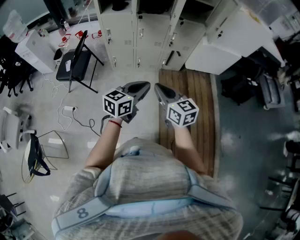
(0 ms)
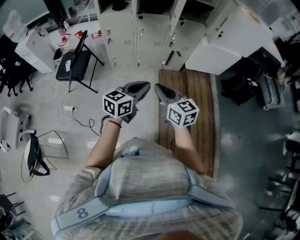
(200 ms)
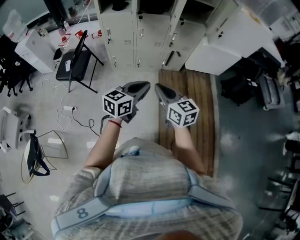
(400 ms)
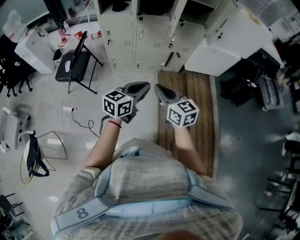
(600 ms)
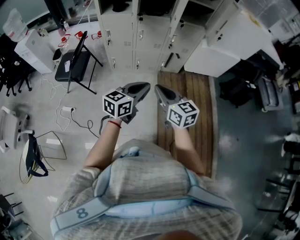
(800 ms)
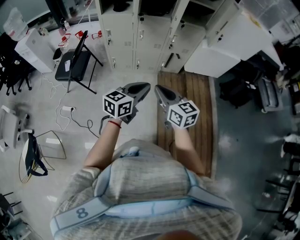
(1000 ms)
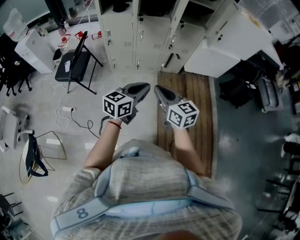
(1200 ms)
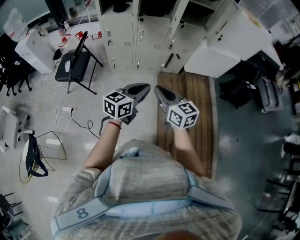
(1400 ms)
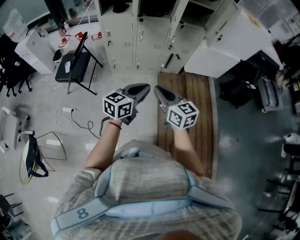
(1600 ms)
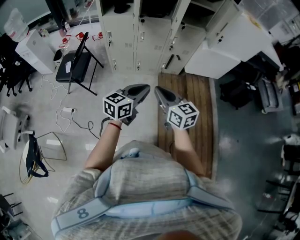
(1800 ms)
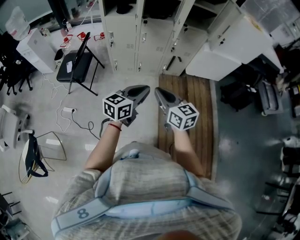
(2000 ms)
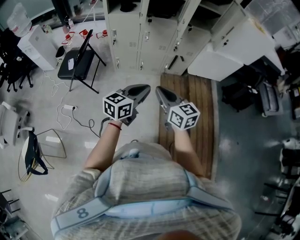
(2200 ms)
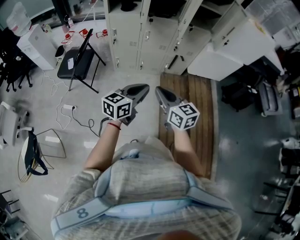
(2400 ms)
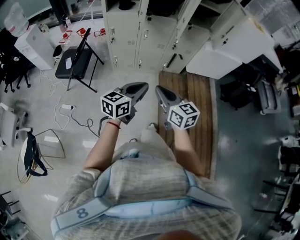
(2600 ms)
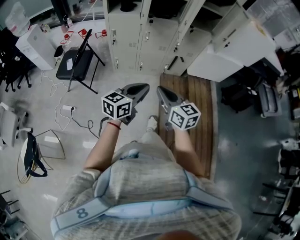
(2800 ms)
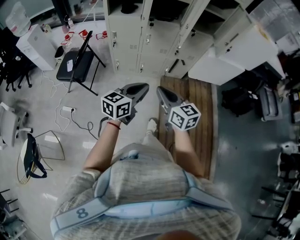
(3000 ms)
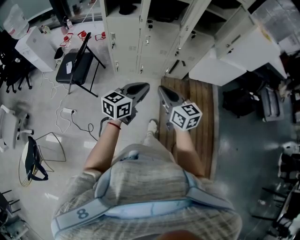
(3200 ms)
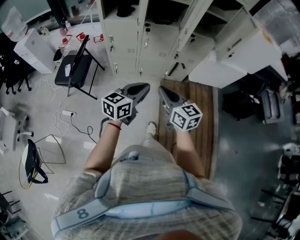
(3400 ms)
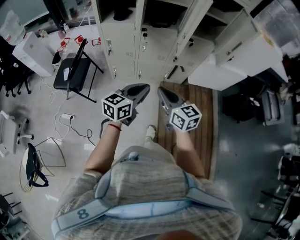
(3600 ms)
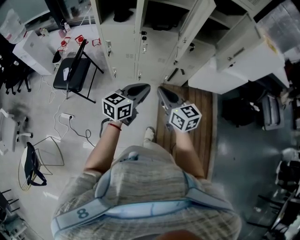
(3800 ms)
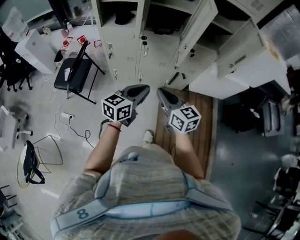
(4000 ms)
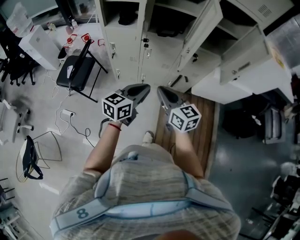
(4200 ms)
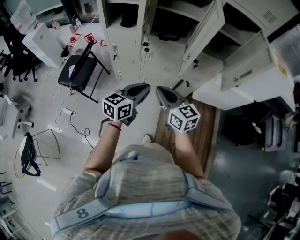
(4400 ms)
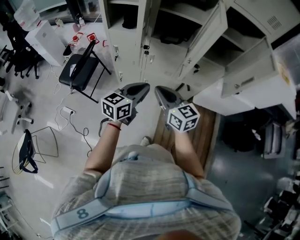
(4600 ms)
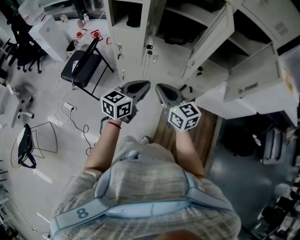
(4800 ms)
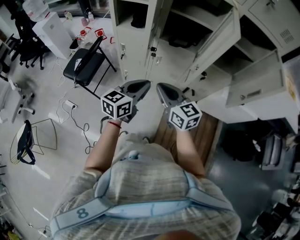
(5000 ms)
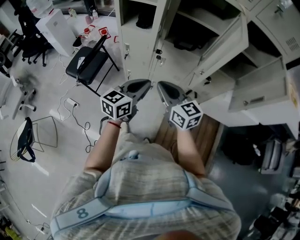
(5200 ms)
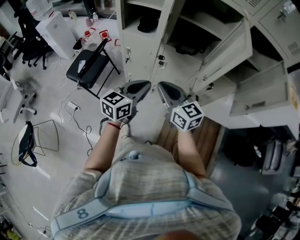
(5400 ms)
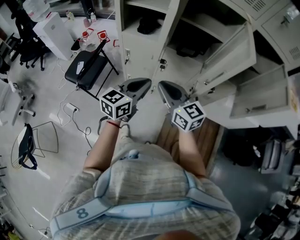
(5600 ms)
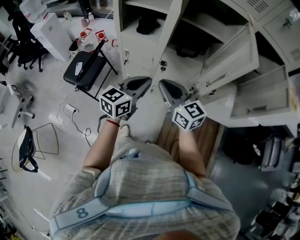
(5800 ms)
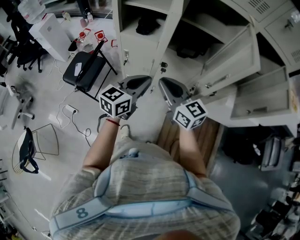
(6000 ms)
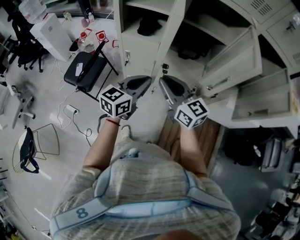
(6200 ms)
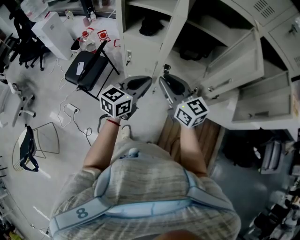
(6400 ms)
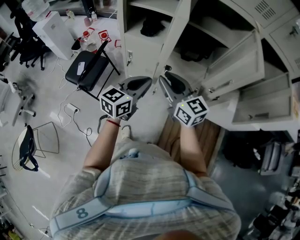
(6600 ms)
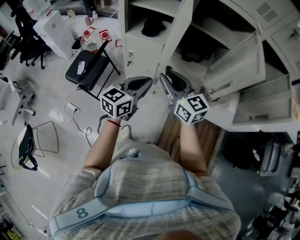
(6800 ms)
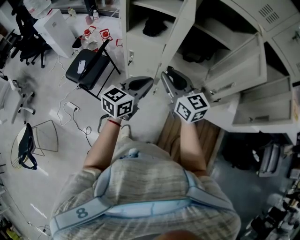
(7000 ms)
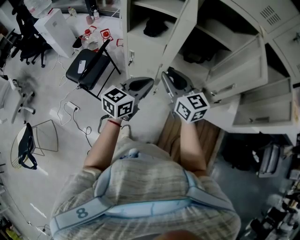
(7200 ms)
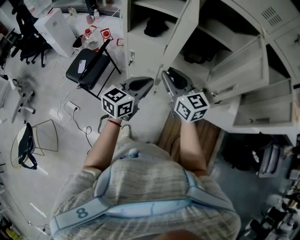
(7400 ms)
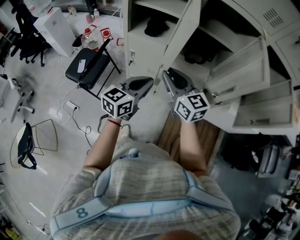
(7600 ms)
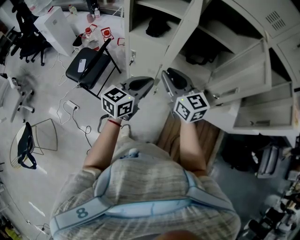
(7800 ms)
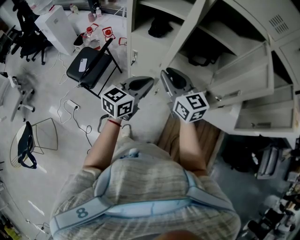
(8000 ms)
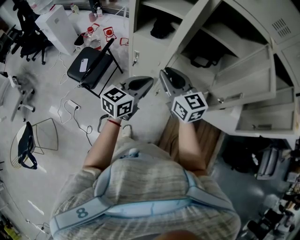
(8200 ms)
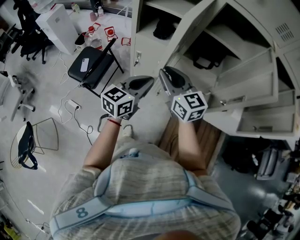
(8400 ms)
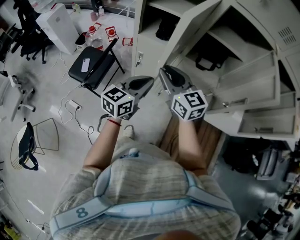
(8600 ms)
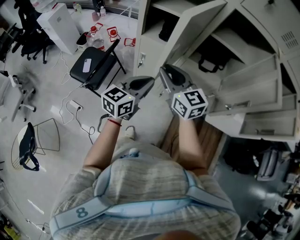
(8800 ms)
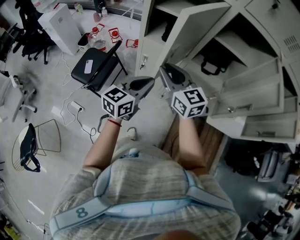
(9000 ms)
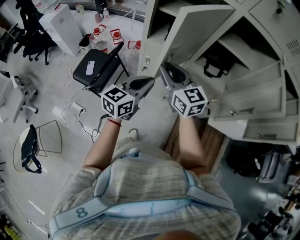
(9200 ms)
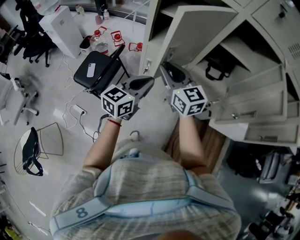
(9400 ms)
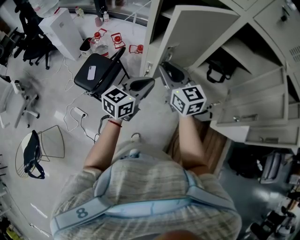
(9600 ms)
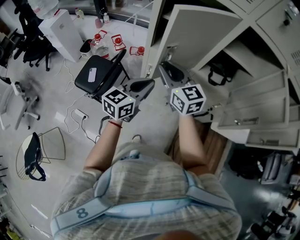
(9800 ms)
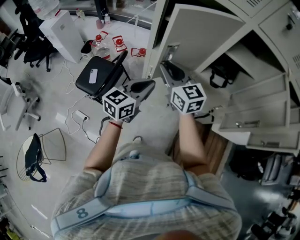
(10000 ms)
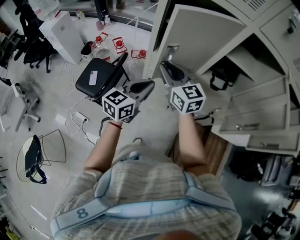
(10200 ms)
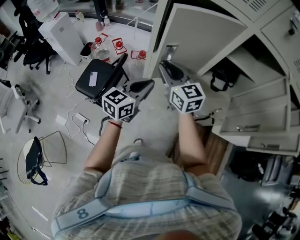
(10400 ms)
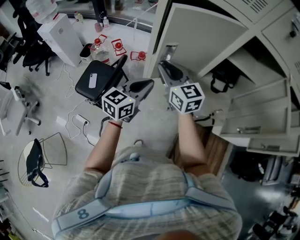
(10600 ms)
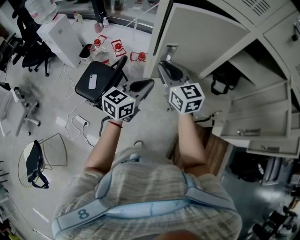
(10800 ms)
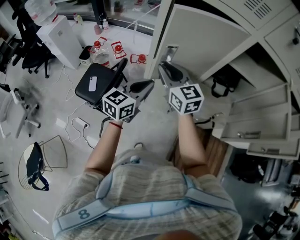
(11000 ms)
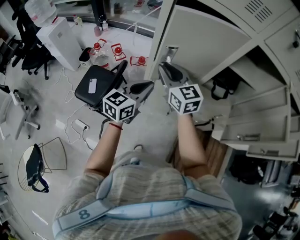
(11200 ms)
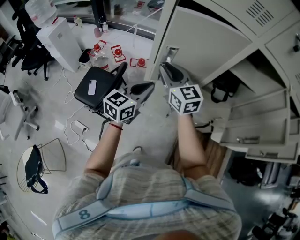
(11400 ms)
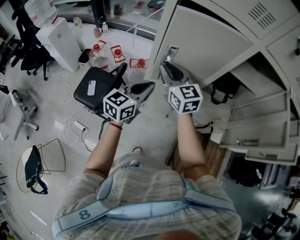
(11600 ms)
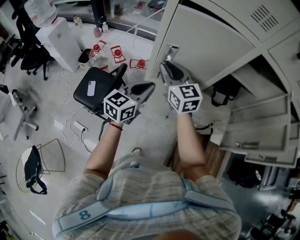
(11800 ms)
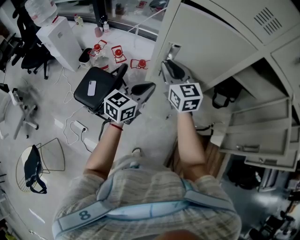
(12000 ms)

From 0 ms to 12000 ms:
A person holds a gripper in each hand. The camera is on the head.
From 0 ms to 1600 ms: Both grippers stay put.
From 1600 ms to 3000 ms: The right gripper moves some 5 cm; the left gripper heads to the left, covering approximately 5 cm.
From 3000 ms to 4400 ms: Both grippers travel together forward, about 20 cm.
From 4400 ms to 6000 ms: Both grippers travel together forward and to the left, roughly 15 cm.
From 6000 ms to 7600 ms: The right gripper heads forward, covering some 5 cm.
From 7600 ms to 9000 ms: The grippers both shift to the left by roughly 10 cm.
From 9000 ms to 10400 ms: The right gripper shifts about 10 cm forward and to the left. Meanwhile the left gripper moves to the left and forward, approximately 10 cm.
From 10400 ms to 12000 ms: The grippers both shift forward by about 10 cm.

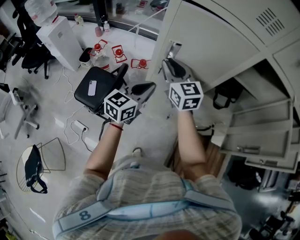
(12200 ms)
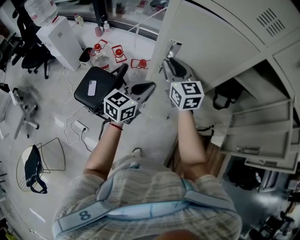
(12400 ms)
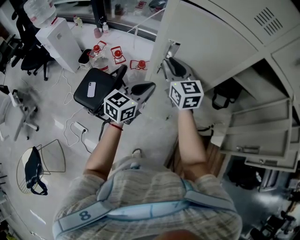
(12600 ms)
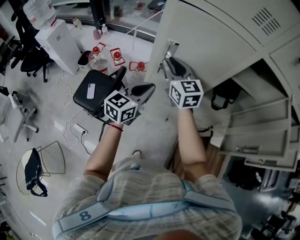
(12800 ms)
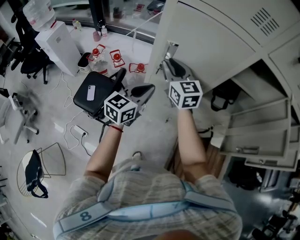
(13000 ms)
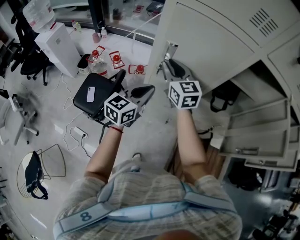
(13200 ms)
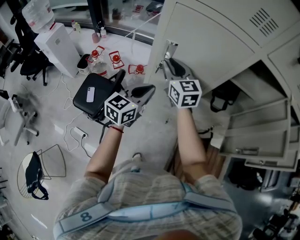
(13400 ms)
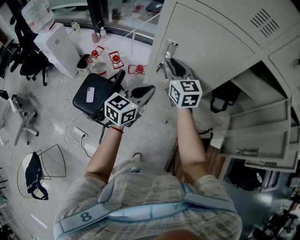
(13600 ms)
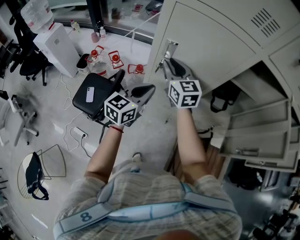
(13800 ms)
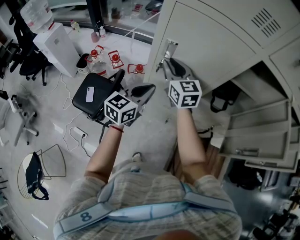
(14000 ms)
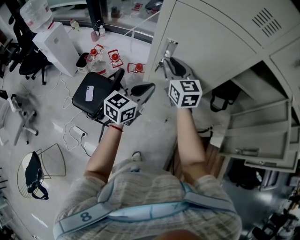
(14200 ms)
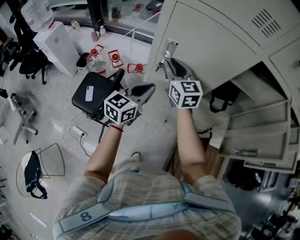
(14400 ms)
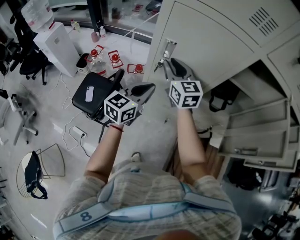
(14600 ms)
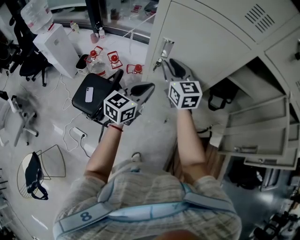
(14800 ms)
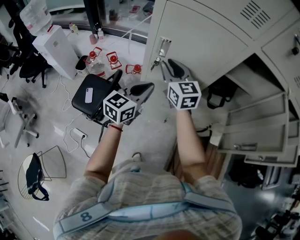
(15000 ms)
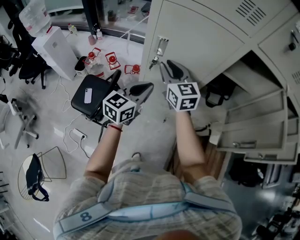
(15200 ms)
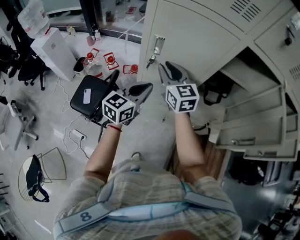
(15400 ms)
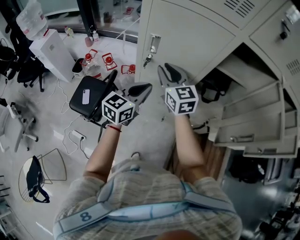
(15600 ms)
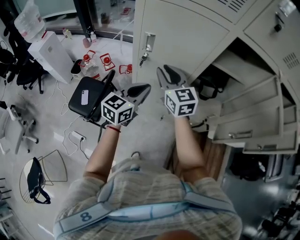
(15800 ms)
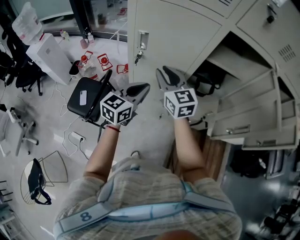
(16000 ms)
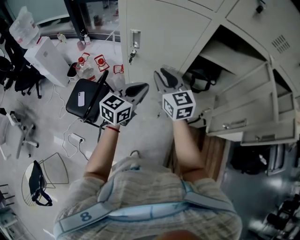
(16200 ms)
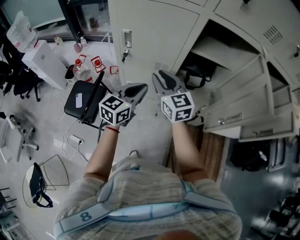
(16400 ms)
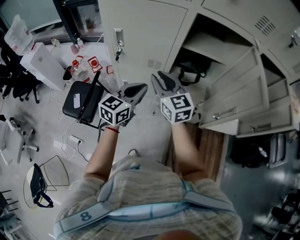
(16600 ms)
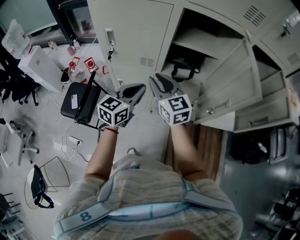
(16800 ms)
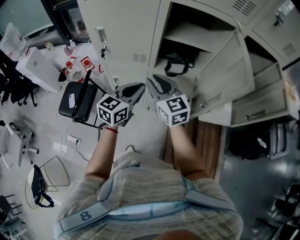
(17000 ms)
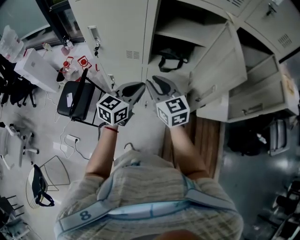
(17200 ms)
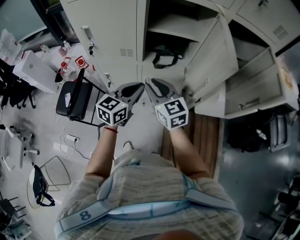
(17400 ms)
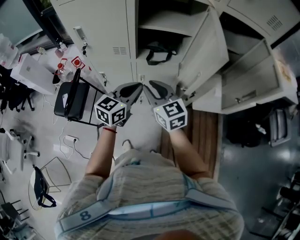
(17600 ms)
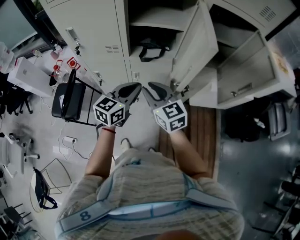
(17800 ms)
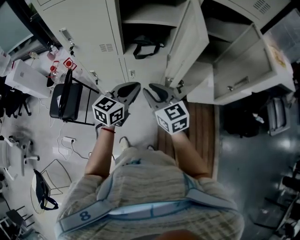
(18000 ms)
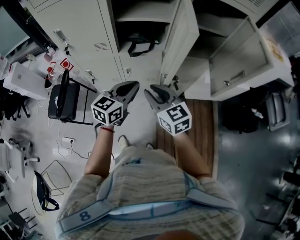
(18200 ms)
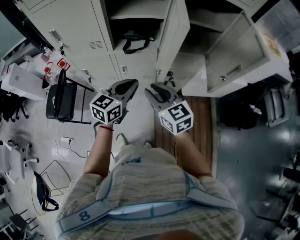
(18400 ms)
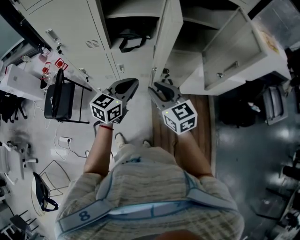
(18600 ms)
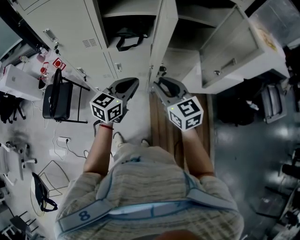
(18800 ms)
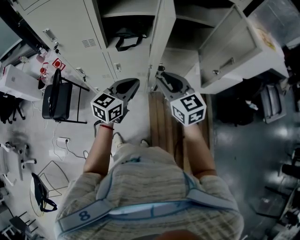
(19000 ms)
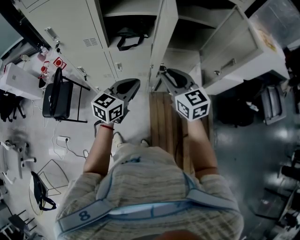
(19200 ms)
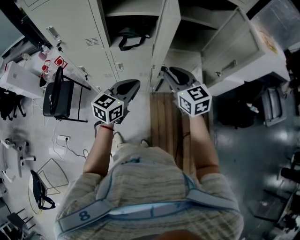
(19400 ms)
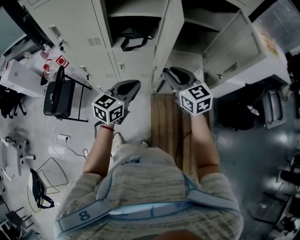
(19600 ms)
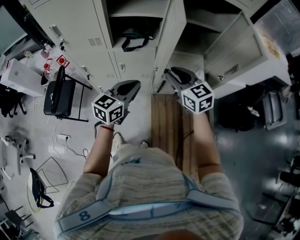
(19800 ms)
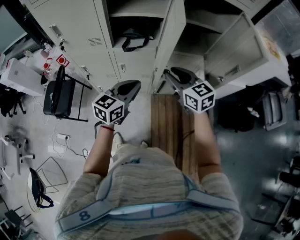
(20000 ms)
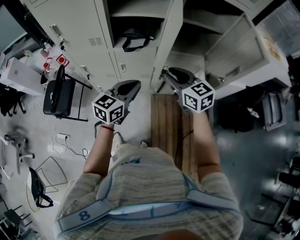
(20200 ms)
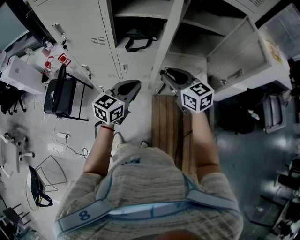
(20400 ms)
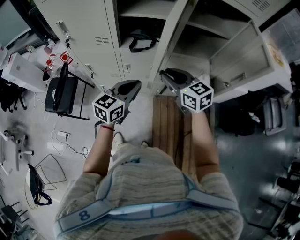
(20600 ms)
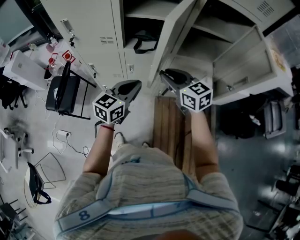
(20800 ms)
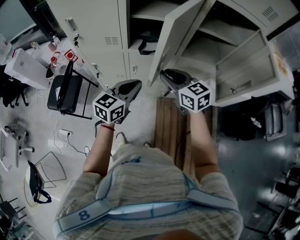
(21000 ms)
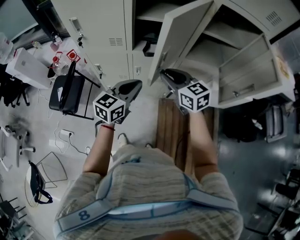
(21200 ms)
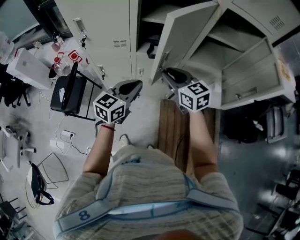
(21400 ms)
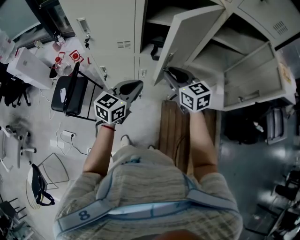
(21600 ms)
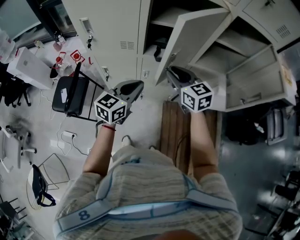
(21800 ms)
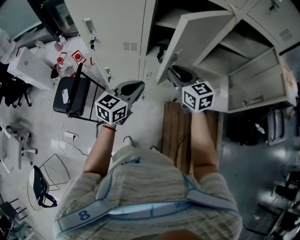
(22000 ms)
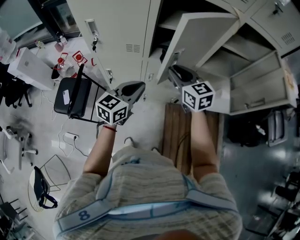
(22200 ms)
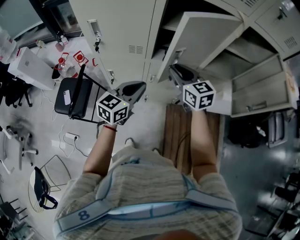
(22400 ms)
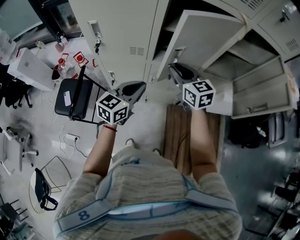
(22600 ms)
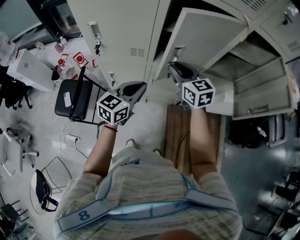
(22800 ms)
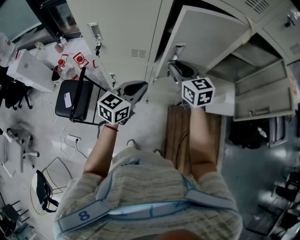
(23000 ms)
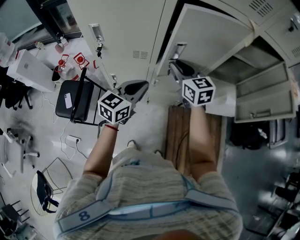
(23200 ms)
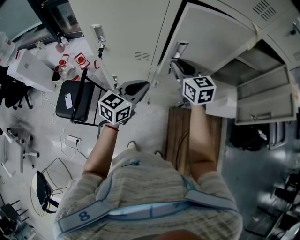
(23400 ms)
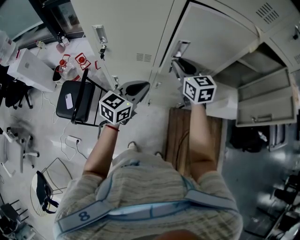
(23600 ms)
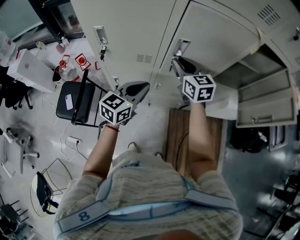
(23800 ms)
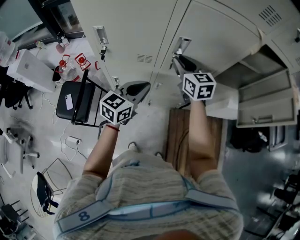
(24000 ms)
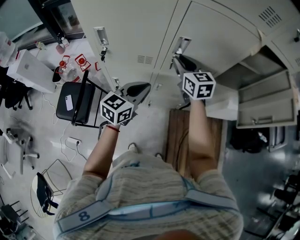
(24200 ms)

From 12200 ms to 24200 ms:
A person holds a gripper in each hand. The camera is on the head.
From 12200 ms to 15200 ms: The grippers move only a little.
From 15200 ms to 16600 ms: The left gripper travels to the right by roughly 15 cm. The right gripper is displaced to the right and backward by roughly 15 cm.
From 16600 ms to 18200 ms: The left gripper goes approximately 20 cm to the right; the right gripper moves to the right and backward, about 25 cm.
From 18200 ms to 19800 ms: The right gripper heads to the right and forward, covering about 15 cm.
From 19800 ms to 21200 ms: Both grippers travel together to the left, roughly 10 cm.
From 21200 ms to 22600 ms: The left gripper moves to the left, some 10 cm, while the right gripper moves forward and to the left, approximately 10 cm.
From 22600 ms to 24200 ms: The left gripper ends up approximately 5 cm from where it was; the right gripper shifts roughly 10 cm forward.
